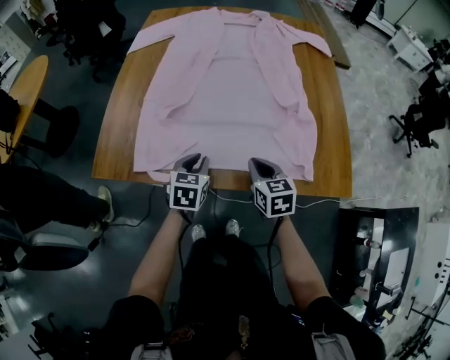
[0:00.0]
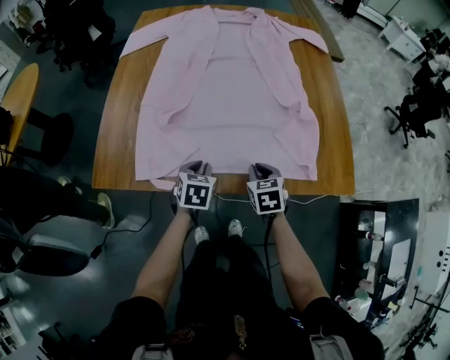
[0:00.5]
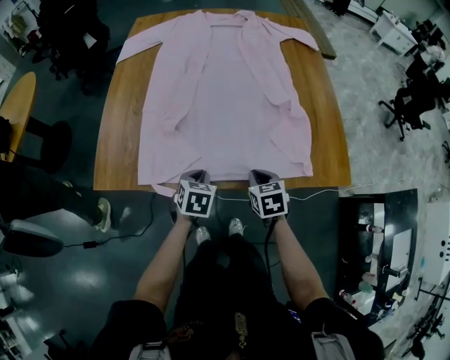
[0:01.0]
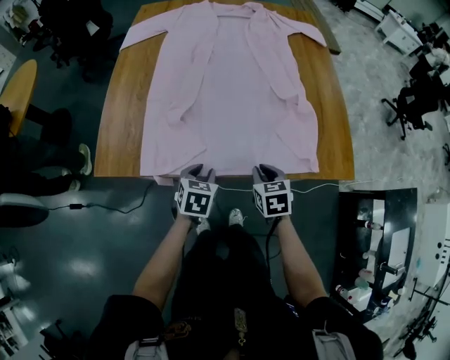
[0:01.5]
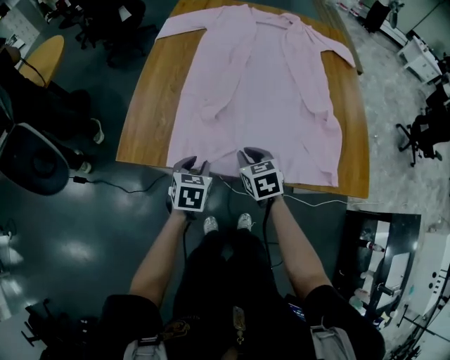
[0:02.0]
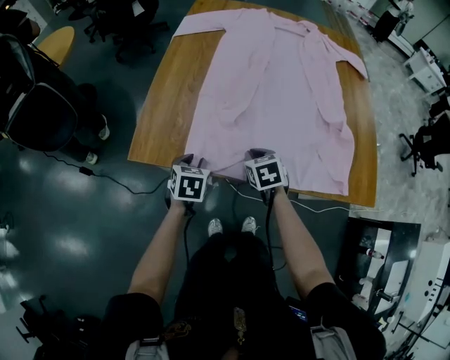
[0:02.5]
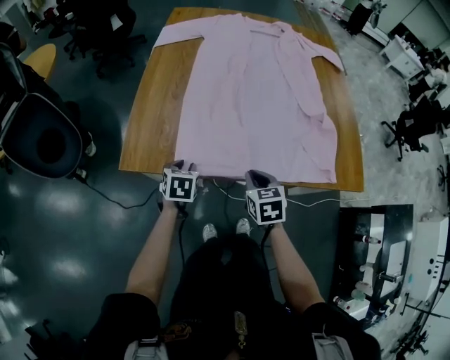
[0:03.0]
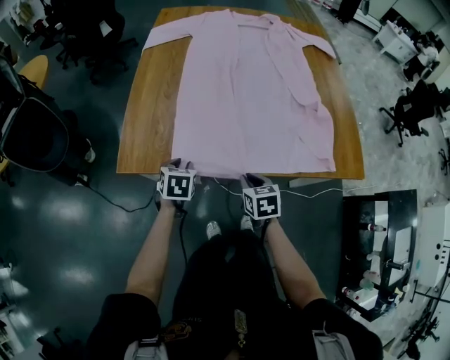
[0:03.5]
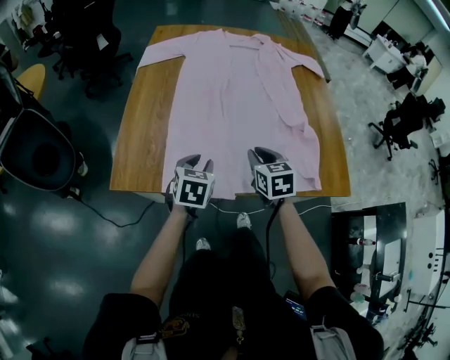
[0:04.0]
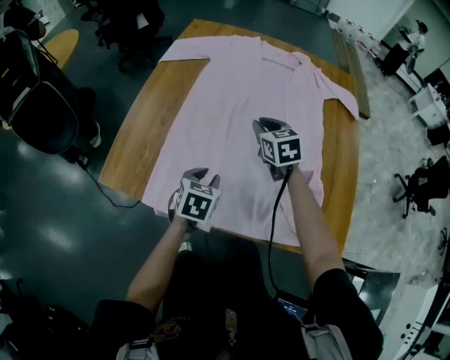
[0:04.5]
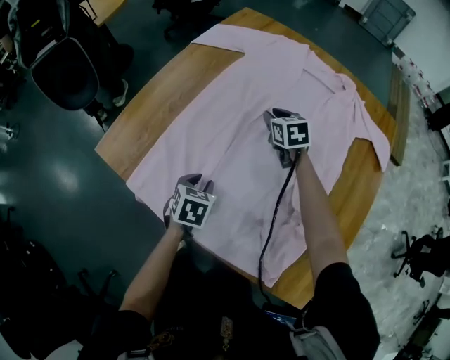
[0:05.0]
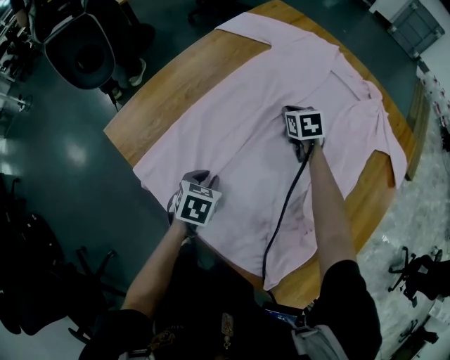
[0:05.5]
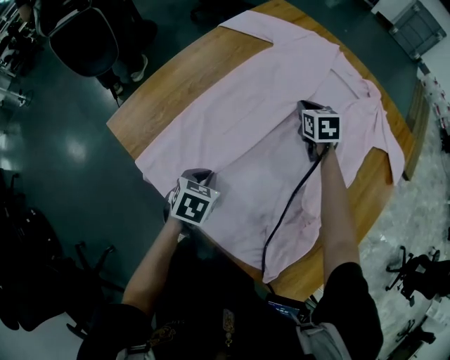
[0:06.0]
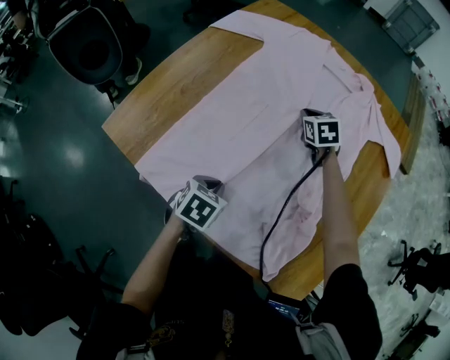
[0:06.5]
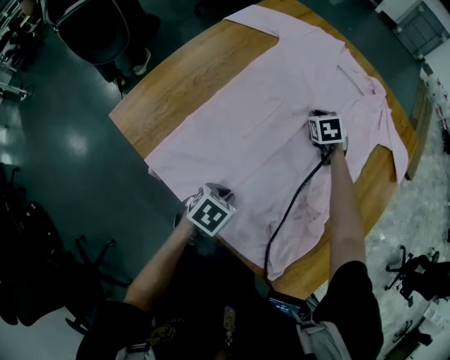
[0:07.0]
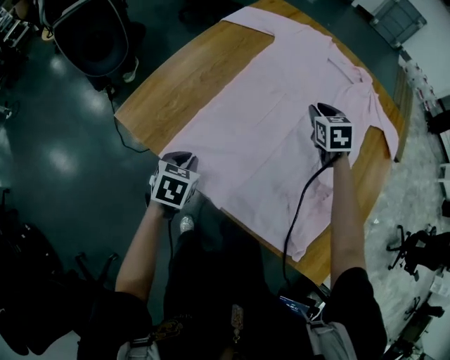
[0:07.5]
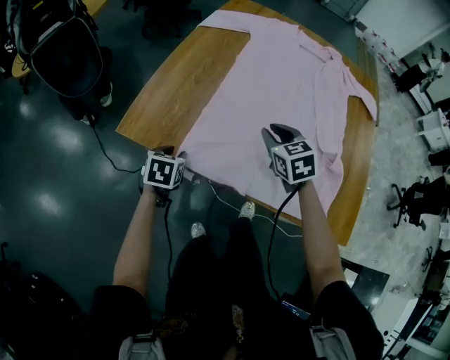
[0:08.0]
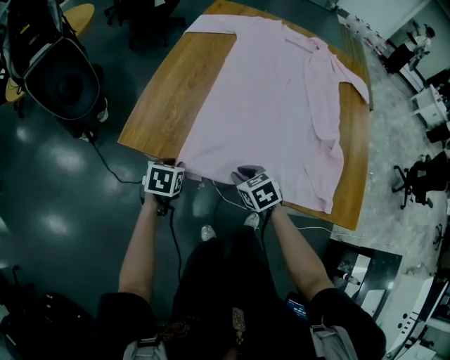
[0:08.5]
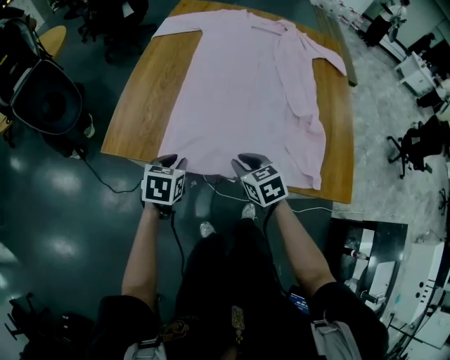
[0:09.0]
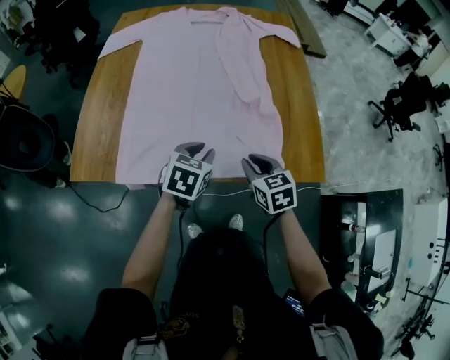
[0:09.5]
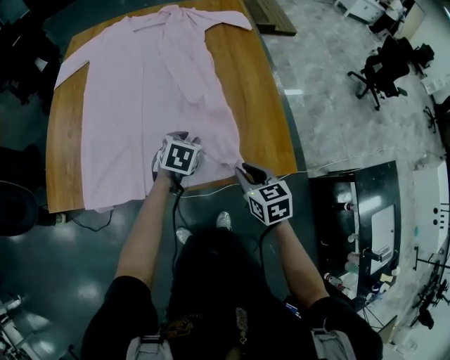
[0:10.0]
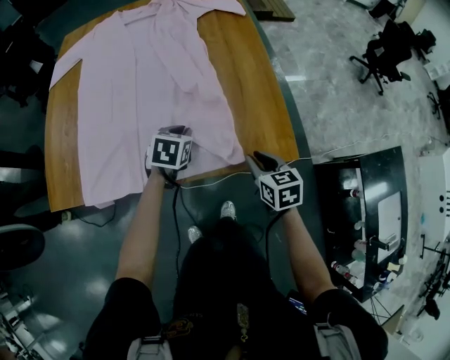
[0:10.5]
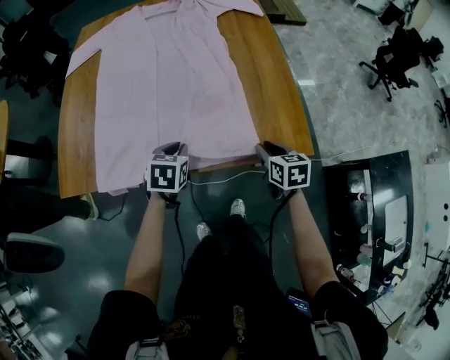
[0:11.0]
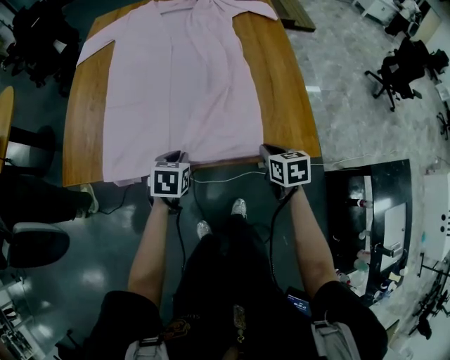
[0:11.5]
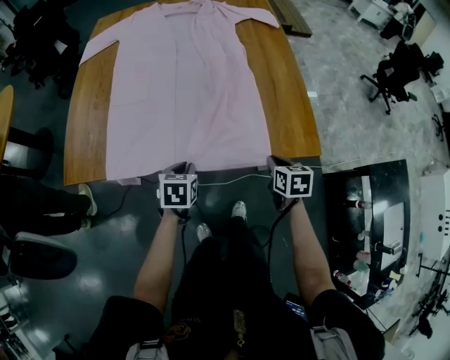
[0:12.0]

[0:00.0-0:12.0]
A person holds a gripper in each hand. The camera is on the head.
0:00.0 to 0:02.0: The two grippers go some 15 cm to the left.
0:02.0 to 0:04.0: The left gripper heads upward, covering some 5 cm, and moves about 10 cm to the left and comes back, while the right gripper is displaced upward and to the right by about 10 cm.
0:04.0 to 0:06.0: The right gripper shifts by some 40 cm, and changes its angle by roughly 40 degrees; the left gripper ends up some 10 cm from where it was, swivels approximately 40 degrees, and closes its fingers.
0:06.0 to 0:08.0: The right gripper travels backward and to the left by roughly 30 cm. The left gripper travels to the left by about 20 cm, and opens up.
0:08.0 to 0:10.0: The left gripper moves roughly 10 cm upward and comes back, and rotates some 40 degrees. Meanwhile the right gripper shifts by about 40 cm, and rotates approximately 40 degrees.
0:10.0 to 0:12.0: The left gripper moves backward and to the left, roughly 20 cm, while the right gripper heads downward, covering some 5 cm.

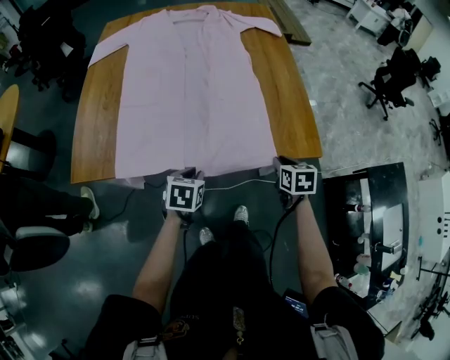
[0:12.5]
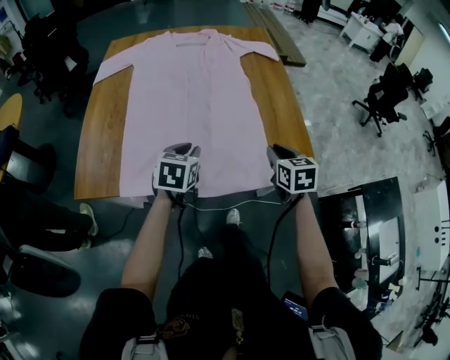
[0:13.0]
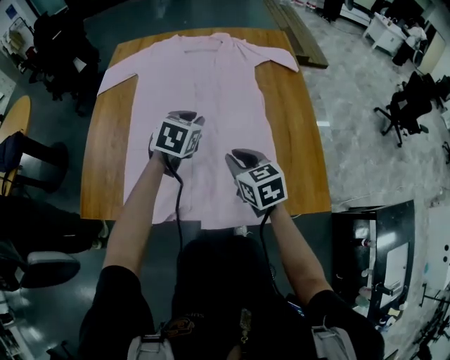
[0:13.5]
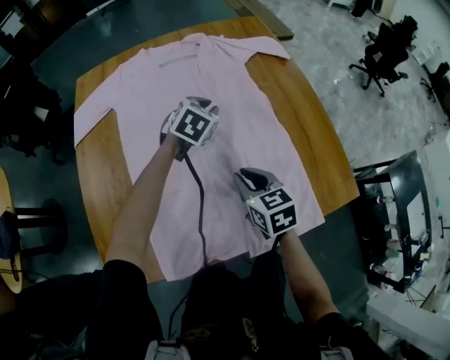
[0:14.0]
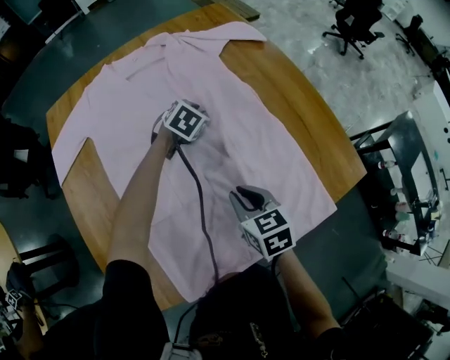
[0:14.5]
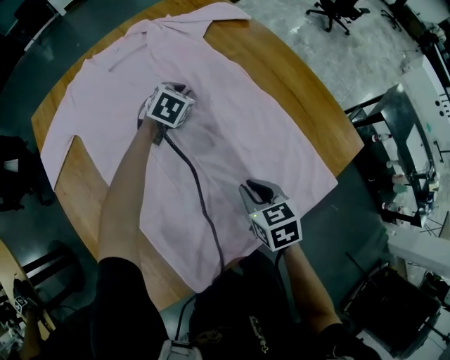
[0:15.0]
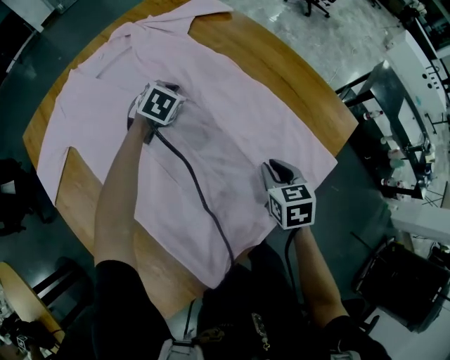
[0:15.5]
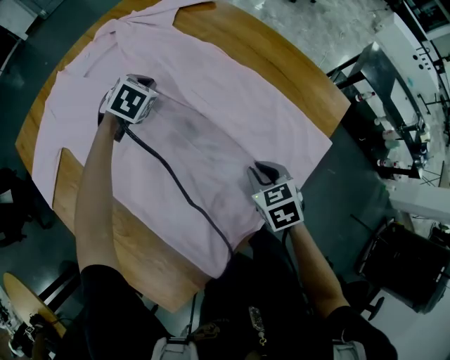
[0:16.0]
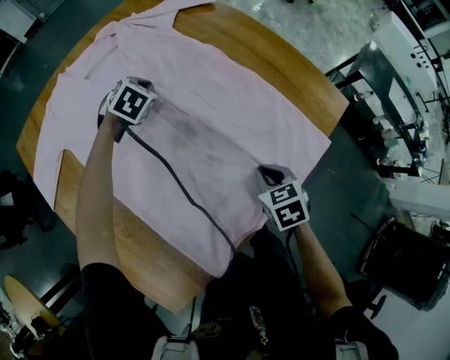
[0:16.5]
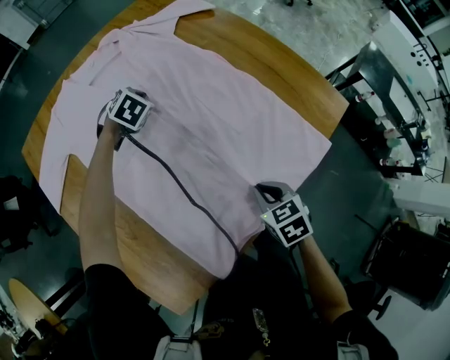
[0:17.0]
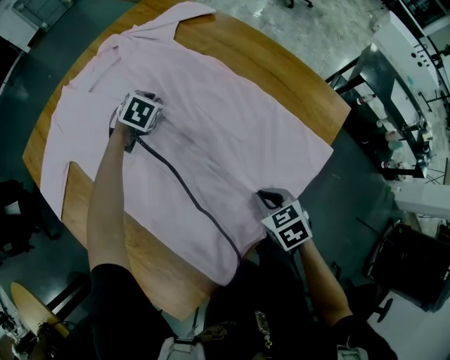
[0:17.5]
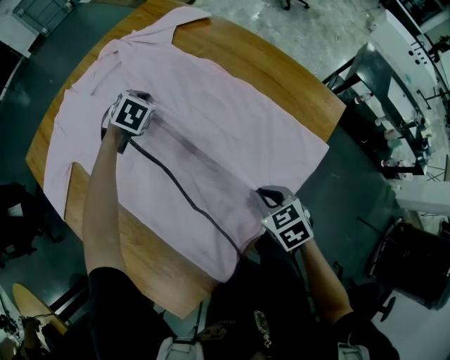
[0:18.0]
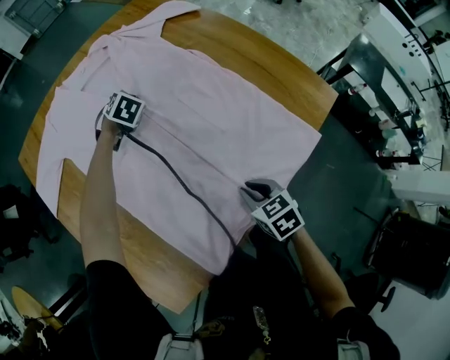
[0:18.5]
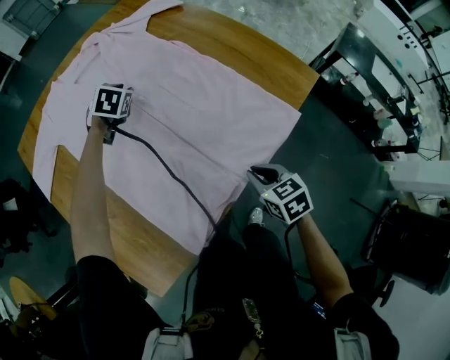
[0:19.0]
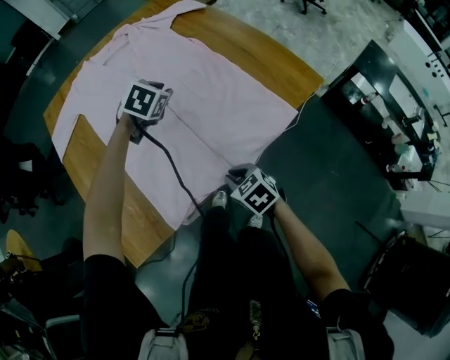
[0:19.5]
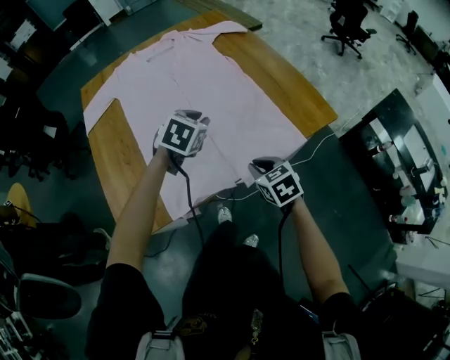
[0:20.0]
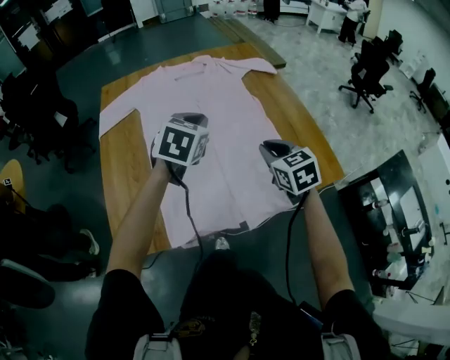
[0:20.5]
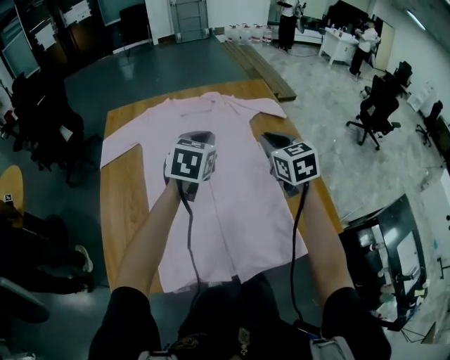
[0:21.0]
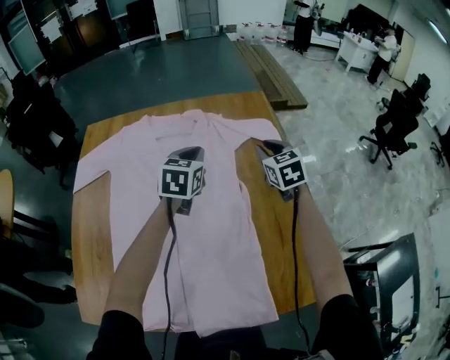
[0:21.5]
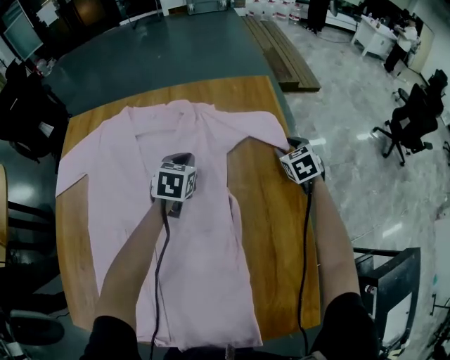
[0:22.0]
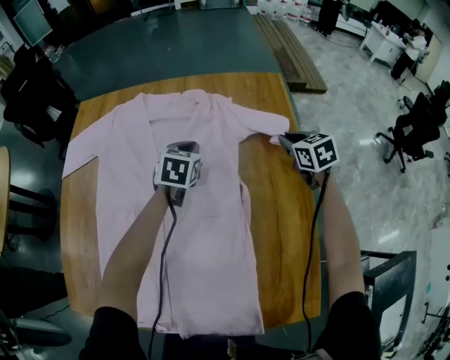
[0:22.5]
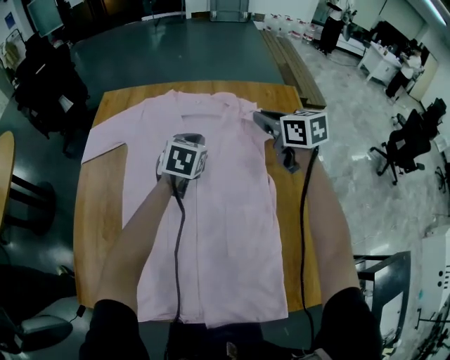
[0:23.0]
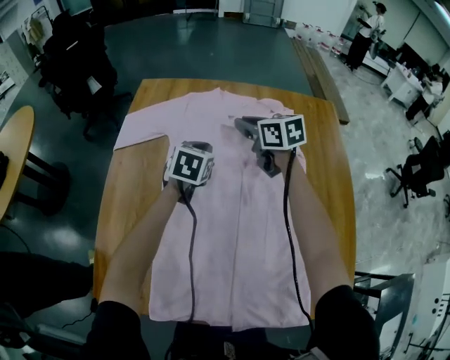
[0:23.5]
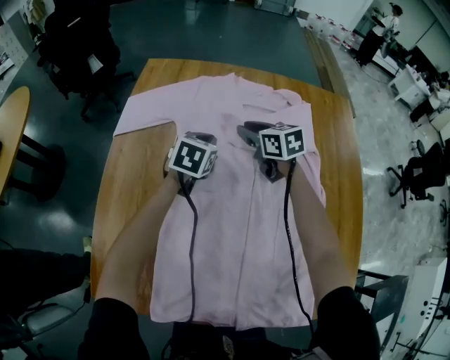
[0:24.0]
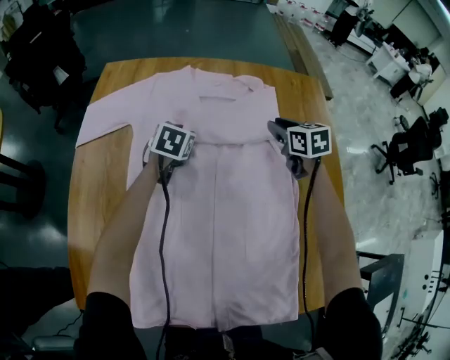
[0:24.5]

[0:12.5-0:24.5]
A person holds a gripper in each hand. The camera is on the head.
0:12.5 to 0:14.5: The left gripper goes upward and returns, some 15 cm each way, and twists about 50 degrees clockwise, seen from behind, while the right gripper travels upward and back again, some 10 cm each way.
0:14.5 to 0:16.5: The right gripper shifts about 10 cm to the right and backward, and rotates some 30 degrees. The left gripper shifts by roughly 5 cm, and closes its fingers.
0:16.5 to 0:18.5: The right gripper travels backward by about 5 cm.
0:18.5 to 0:20.5: The right gripper heads upward and forward, covering about 20 cm, and turns by about 30 degrees. Meanwhile the left gripper is displaced backward and upward by roughly 40 cm, turns by some 40 degrees, and opens, then closes once more.
0:20.5 to 0:22.5: The left gripper goes approximately 40 cm forward and downward, and turns by about 30 degrees. Meanwhile the right gripper is displaced forward and to the right by some 50 cm, and opens, then closes once more.
0:22.5 to 0:24.5: The grippers both shift to the left by roughly 20 cm. The left gripper opens.

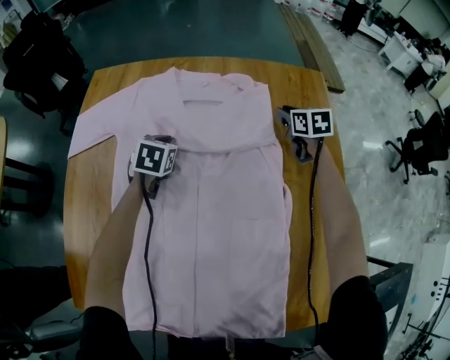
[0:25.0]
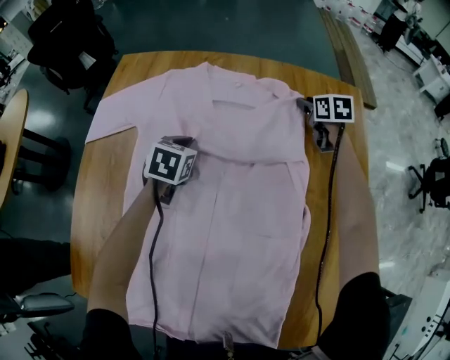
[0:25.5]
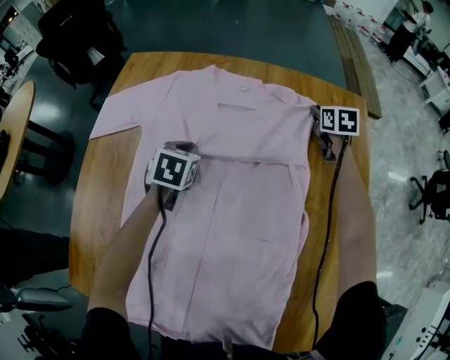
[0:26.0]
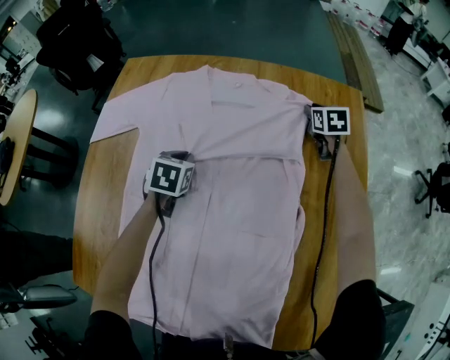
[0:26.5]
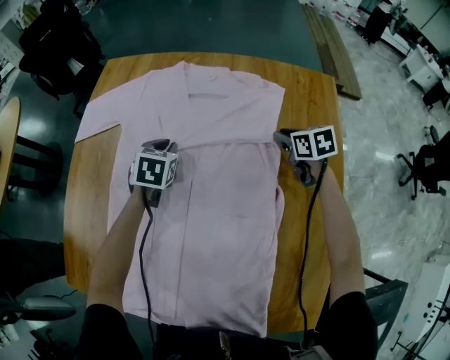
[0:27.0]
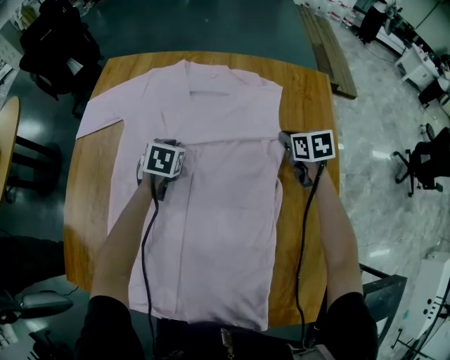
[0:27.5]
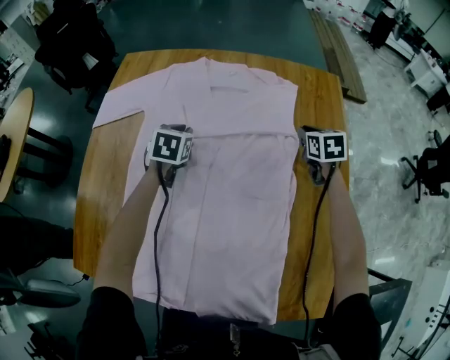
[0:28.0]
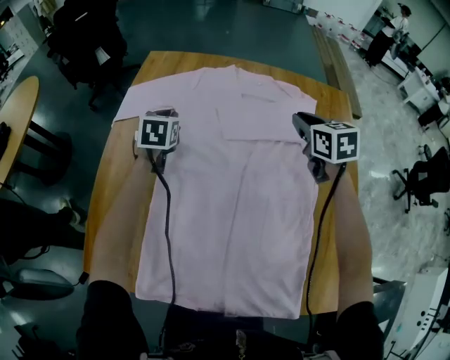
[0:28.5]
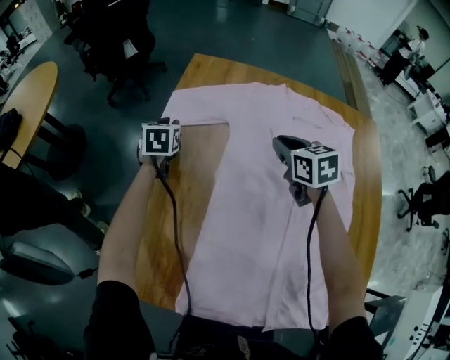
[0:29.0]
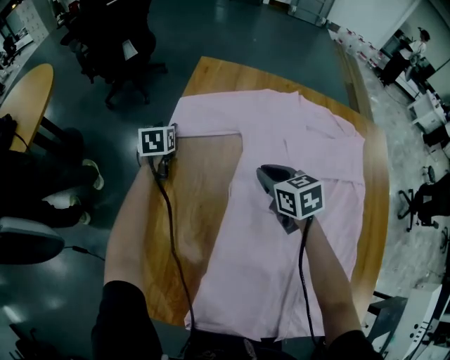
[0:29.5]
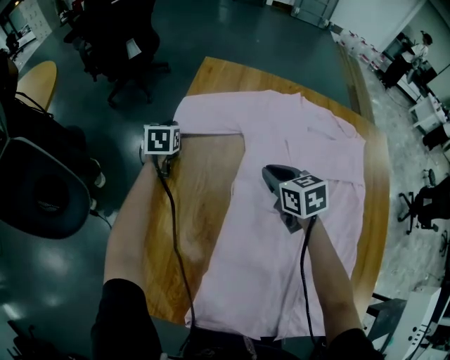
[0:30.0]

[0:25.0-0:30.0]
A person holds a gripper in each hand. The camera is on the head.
0:25.0 to 0:27.5: The left gripper shifts by roughly 5 cm, while the right gripper moves backward, about 10 cm, and closes.
0:27.5 to 0:30.0: The two grippers travel together, to the left, some 50 cm. The left gripper changes its angle by about 20 degrees, and opens, then closes again.
